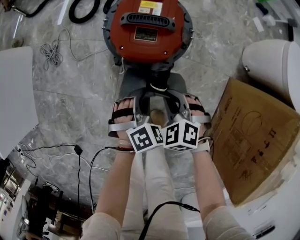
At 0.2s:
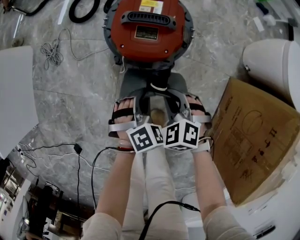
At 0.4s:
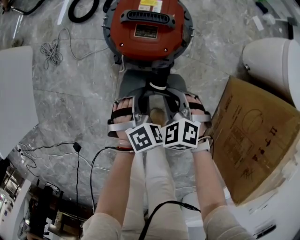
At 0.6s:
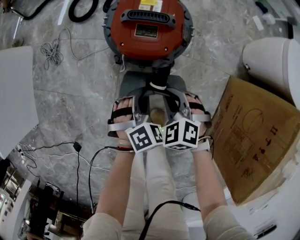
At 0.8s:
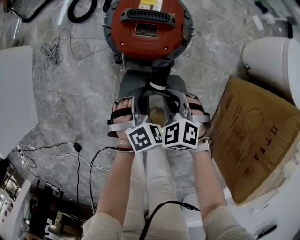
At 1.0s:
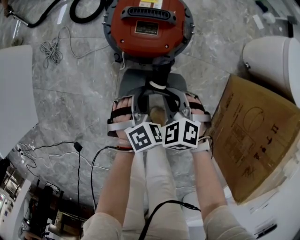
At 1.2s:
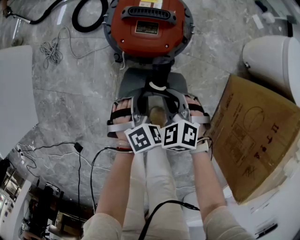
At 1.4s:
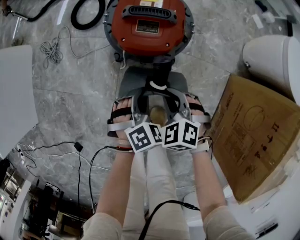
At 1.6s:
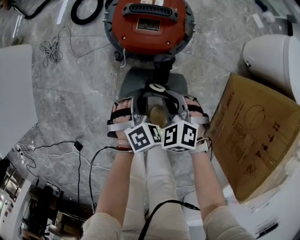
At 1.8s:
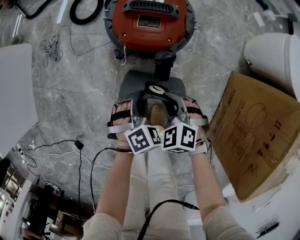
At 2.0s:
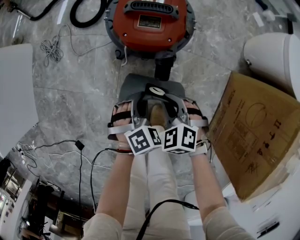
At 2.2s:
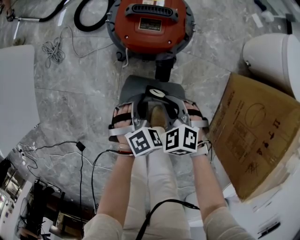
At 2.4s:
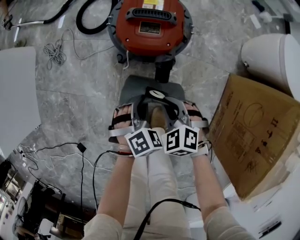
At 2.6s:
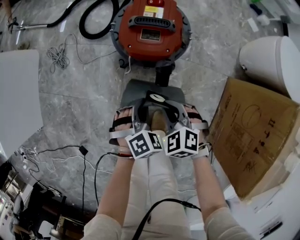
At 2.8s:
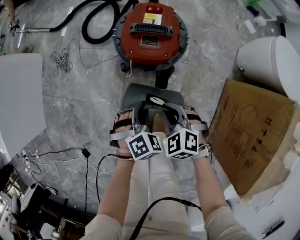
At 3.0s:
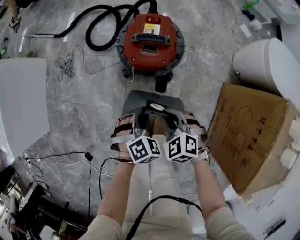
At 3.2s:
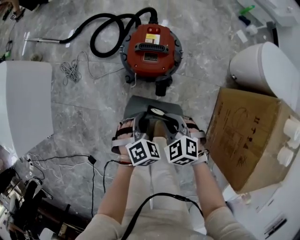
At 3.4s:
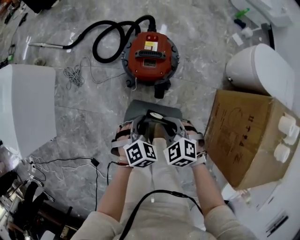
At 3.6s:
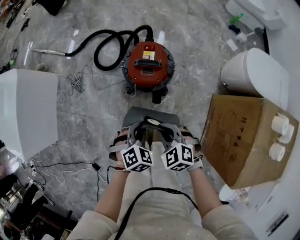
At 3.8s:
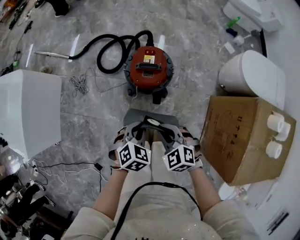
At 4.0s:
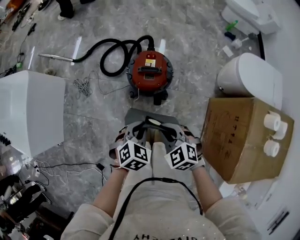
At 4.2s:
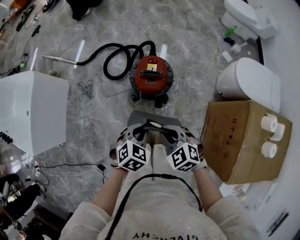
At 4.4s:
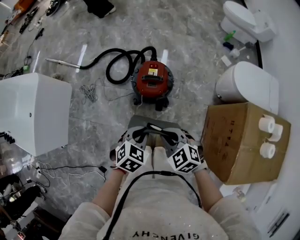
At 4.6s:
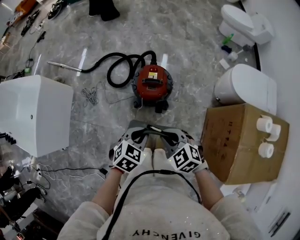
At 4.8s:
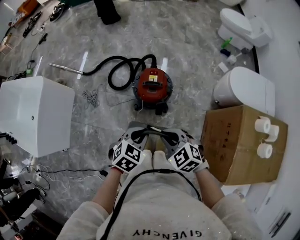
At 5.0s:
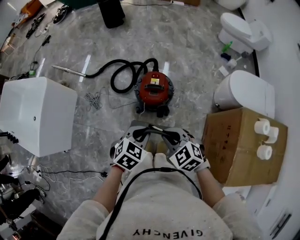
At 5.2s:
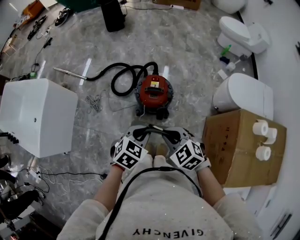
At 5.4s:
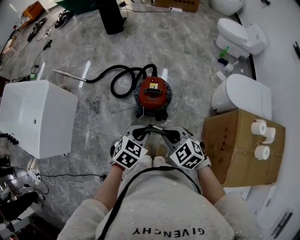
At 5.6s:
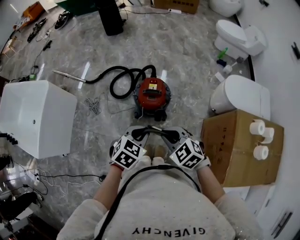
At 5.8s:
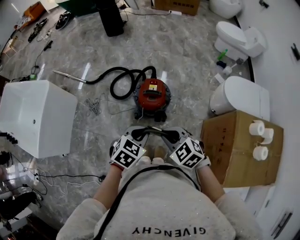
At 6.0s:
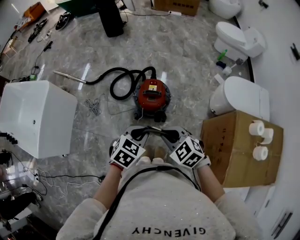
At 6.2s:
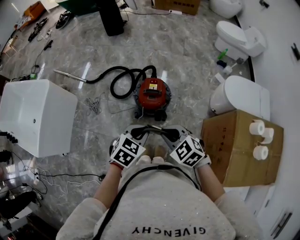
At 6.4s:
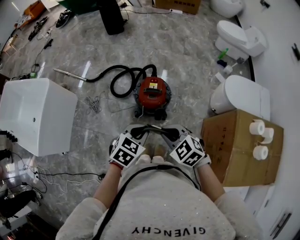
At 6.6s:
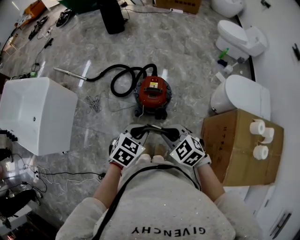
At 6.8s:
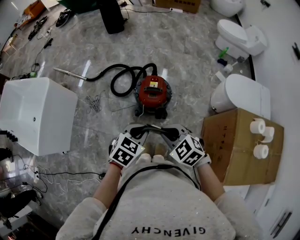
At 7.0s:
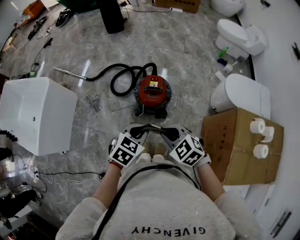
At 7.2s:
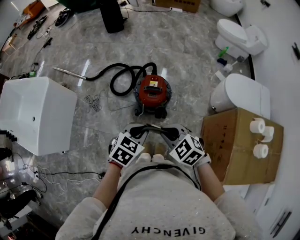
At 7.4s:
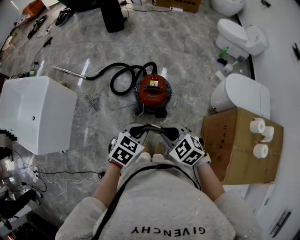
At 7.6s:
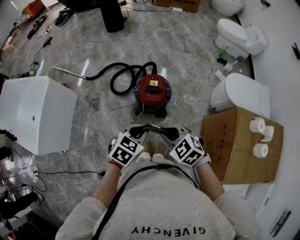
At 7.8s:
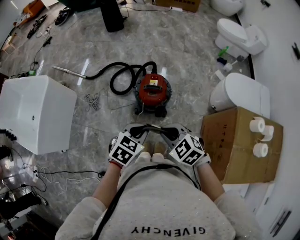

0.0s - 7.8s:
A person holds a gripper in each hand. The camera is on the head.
0.0s - 1.6s: The grippers stay close to where they were, moving slightly.
1.6s - 3.2s: Both grippers travel together upward, roughly 15 cm.
3.2s - 4.6s: The two grippers go approximately 25 cm upward. The left gripper turns by about 30 degrees.
4.6s - 6.2s: The grippers both shift upward by approximately 5 cm.
6.2s - 7.8s: There are only small adjustments of the grippers.

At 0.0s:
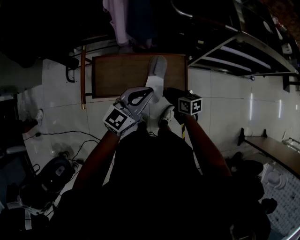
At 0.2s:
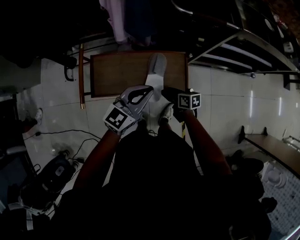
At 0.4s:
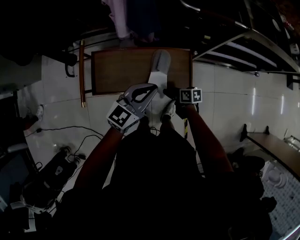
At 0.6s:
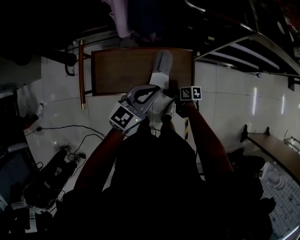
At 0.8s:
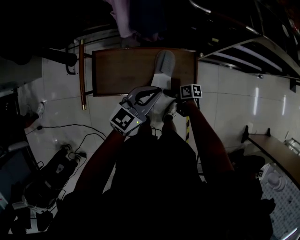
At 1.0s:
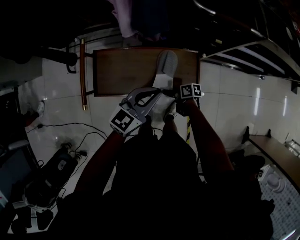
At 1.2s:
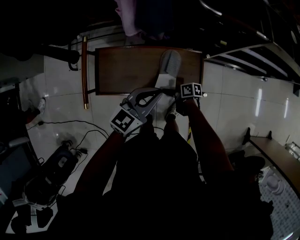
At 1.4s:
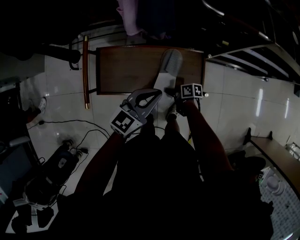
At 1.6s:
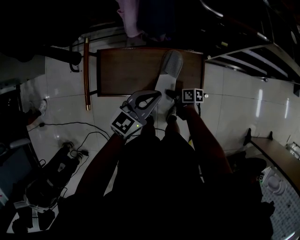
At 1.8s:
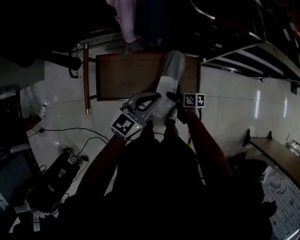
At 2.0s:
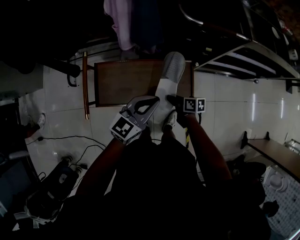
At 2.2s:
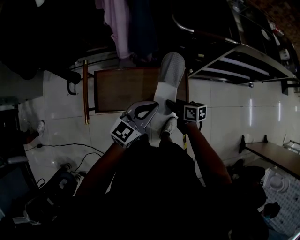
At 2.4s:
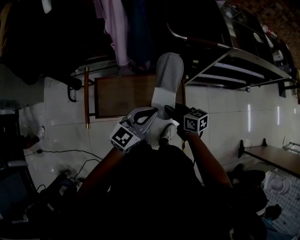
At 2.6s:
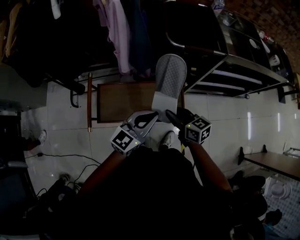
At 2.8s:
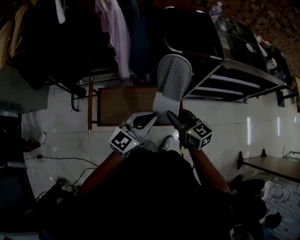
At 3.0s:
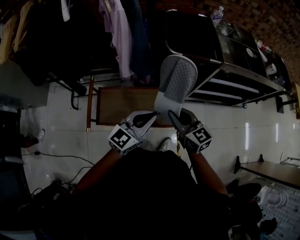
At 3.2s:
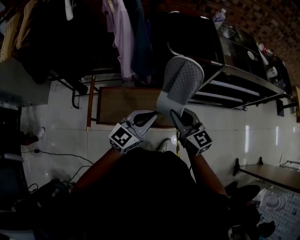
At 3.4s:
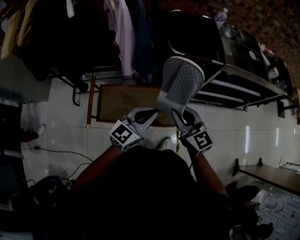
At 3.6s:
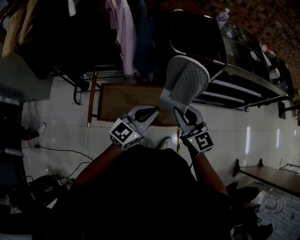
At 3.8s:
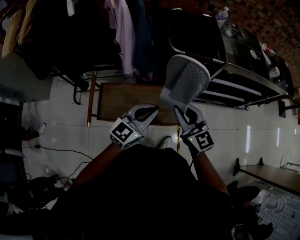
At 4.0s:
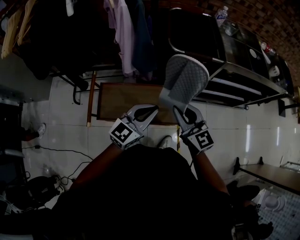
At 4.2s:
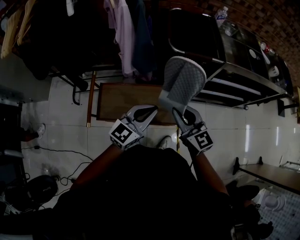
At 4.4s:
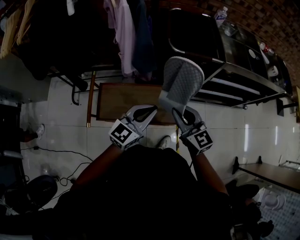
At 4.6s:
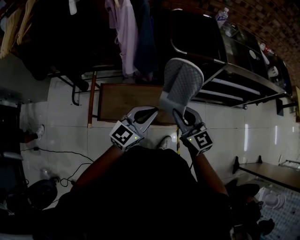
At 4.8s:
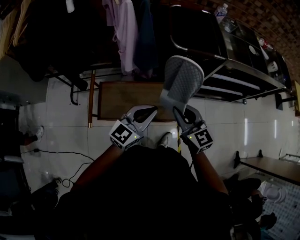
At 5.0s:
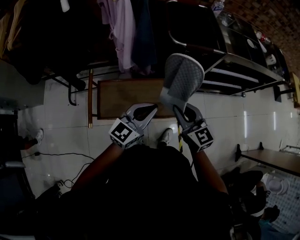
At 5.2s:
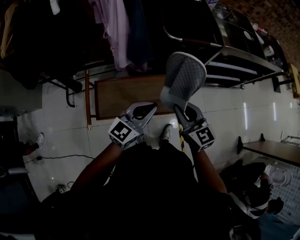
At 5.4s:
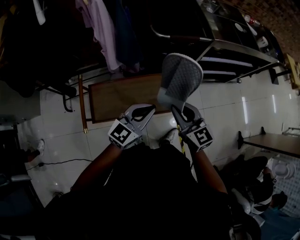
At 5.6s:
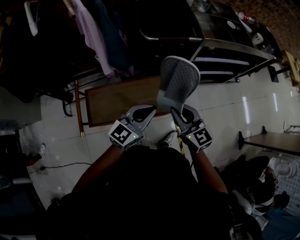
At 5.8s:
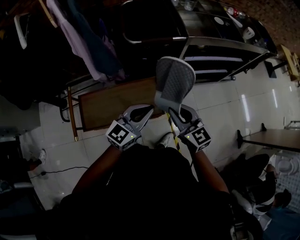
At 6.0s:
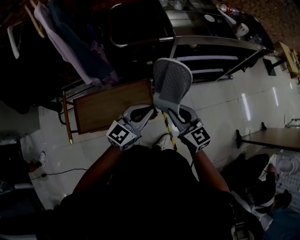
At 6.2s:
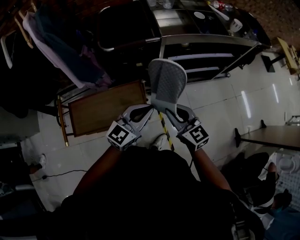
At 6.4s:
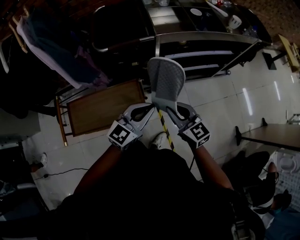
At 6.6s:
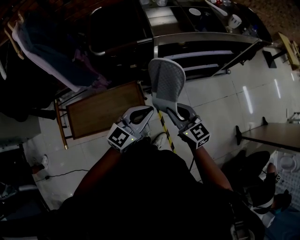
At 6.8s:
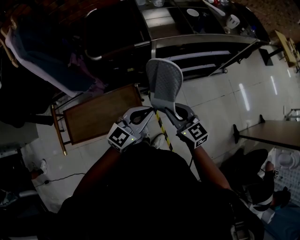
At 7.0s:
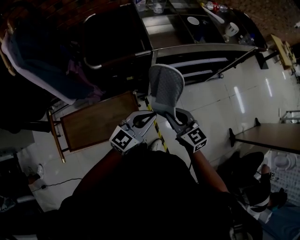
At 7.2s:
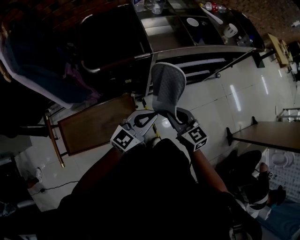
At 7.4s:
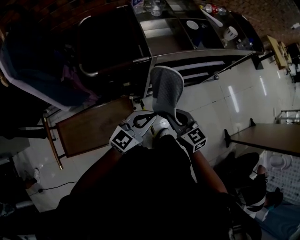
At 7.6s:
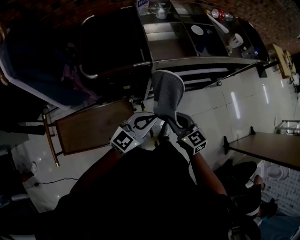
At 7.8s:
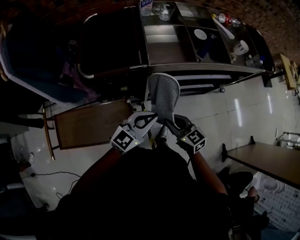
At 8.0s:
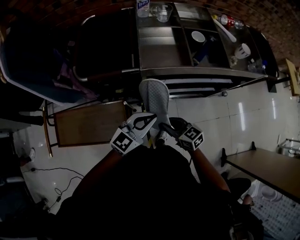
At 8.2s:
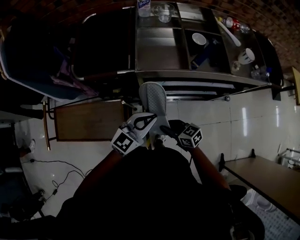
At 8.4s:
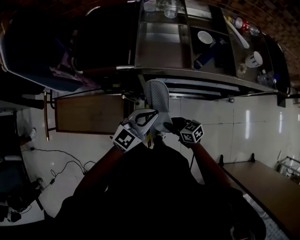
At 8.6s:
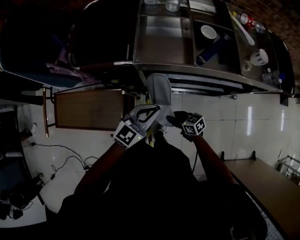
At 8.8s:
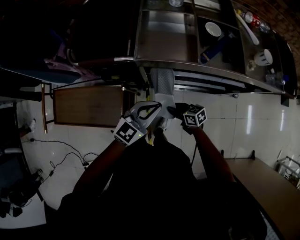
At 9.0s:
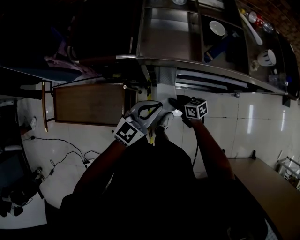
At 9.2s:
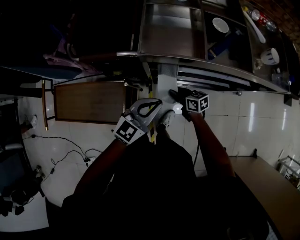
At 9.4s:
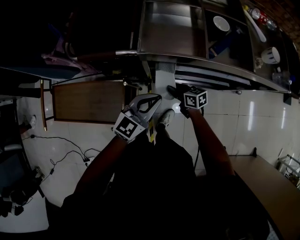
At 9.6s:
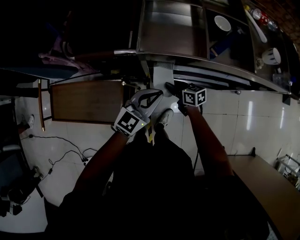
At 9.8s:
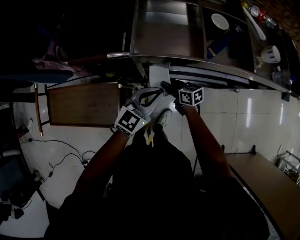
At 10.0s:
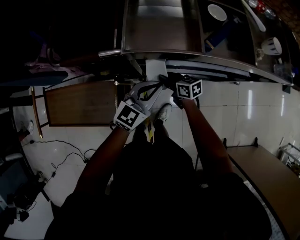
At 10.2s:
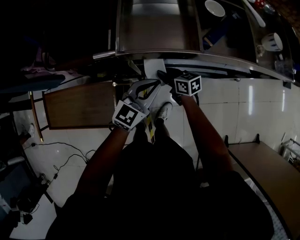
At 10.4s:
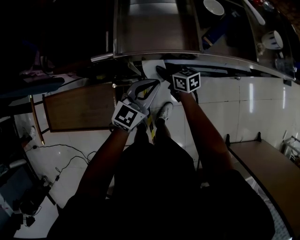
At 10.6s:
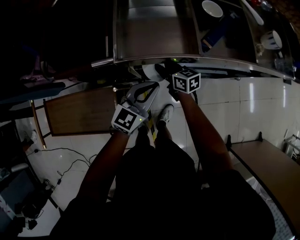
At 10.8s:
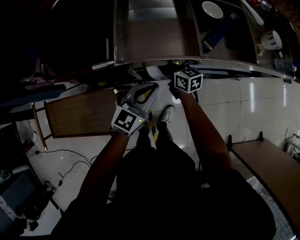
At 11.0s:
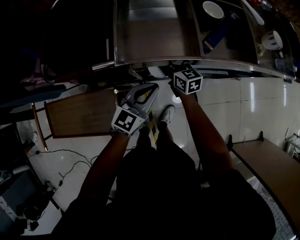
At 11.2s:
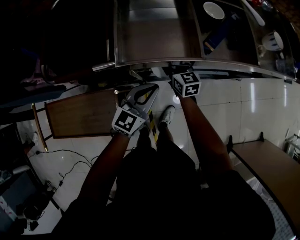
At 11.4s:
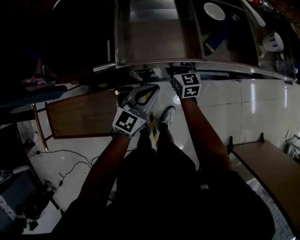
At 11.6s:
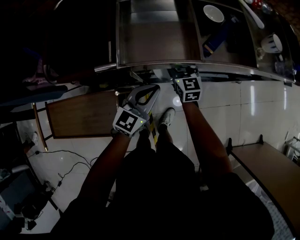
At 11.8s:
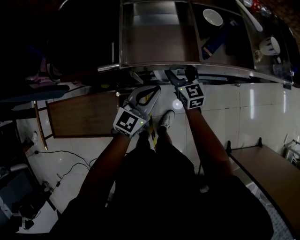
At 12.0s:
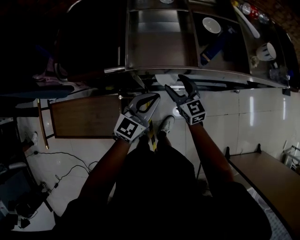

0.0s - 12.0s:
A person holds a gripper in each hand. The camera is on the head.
0.0s - 1.6s: The left gripper goes some 5 cm downward, while the right gripper goes roughly 15 cm downward, swivels approximately 30 degrees, and opens and closes again.
1.6s - 3.0s: The left gripper goes approximately 15 cm upward, while the right gripper goes some 40 cm upward, and rolls counterclockwise, seen from behind, by some 60 degrees.
3.0s - 4.4s: The grippers stay close to where they were, moving slightly.
4.4s - 6.0s: Both grippers move to the right, roughly 20 cm.
6.0s - 7.6s: The right gripper shifts roughly 20 cm forward, to the right and downward. Meanwhile the left gripper moves forward and to the right, roughly 20 cm.
7.6s - 9.0s: The left gripper changes place by some 15 cm; the right gripper goes about 20 cm downward, and rotates about 40 degrees.
9.0s - 10.4s: The right gripper is displaced forward by roughly 15 cm. The left gripper heads forward and downward, covering about 10 cm.
10.4s - 12.0s: The right gripper heads upward, covering approximately 10 cm, changes its angle by about 30 degrees, and opens up.

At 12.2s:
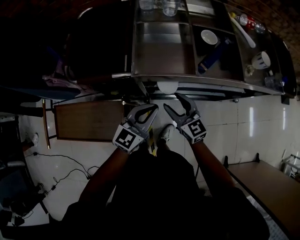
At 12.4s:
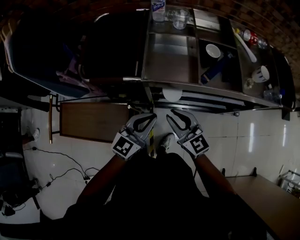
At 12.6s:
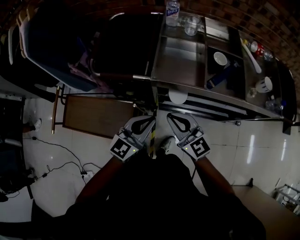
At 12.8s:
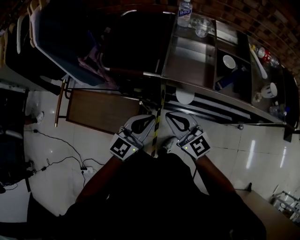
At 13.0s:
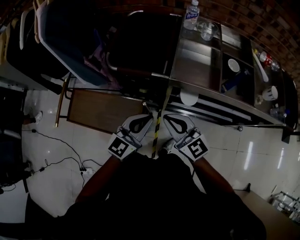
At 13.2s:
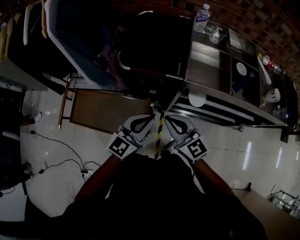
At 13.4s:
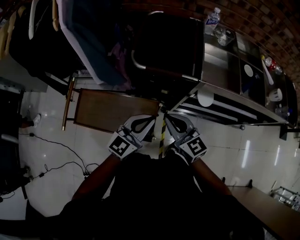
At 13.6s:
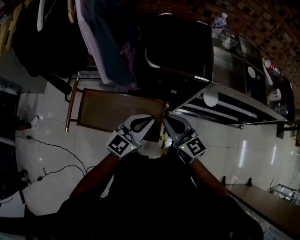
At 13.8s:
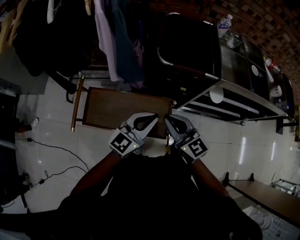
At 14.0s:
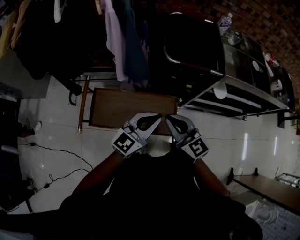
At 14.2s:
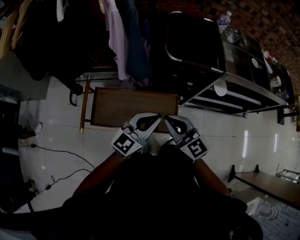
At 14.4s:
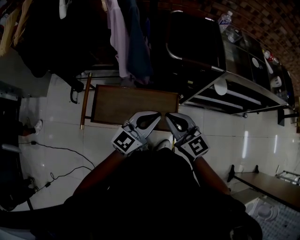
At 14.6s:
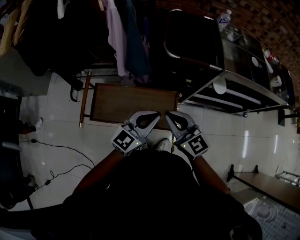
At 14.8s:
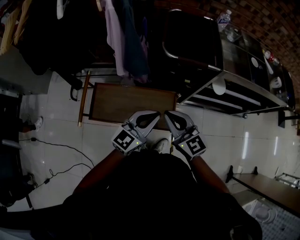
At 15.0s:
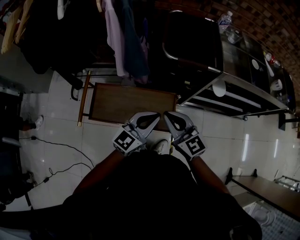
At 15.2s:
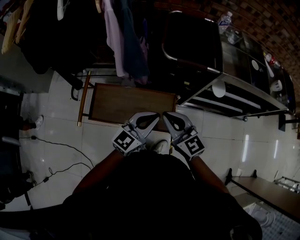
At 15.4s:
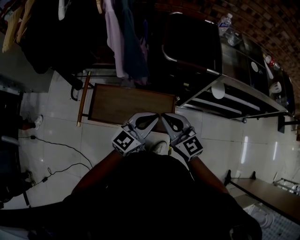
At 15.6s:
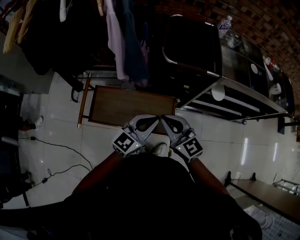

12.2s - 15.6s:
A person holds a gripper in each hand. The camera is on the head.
12.2s - 13.8s: The two grippers go some 40 cm to the left. The right gripper closes its fingers.
13.8s - 15.6s: The right gripper moves approximately 5 cm.
